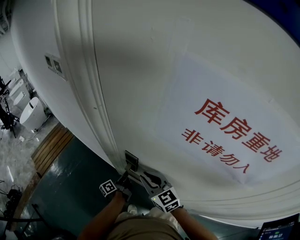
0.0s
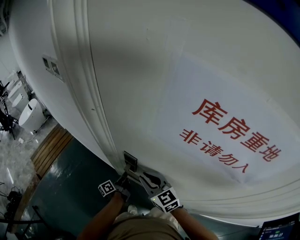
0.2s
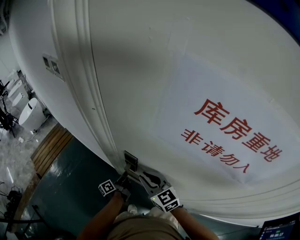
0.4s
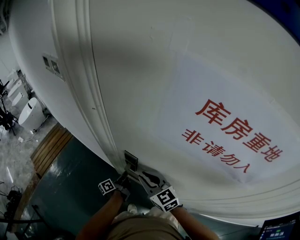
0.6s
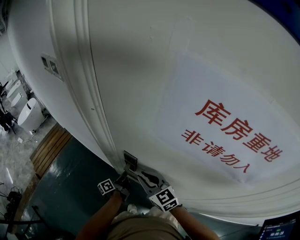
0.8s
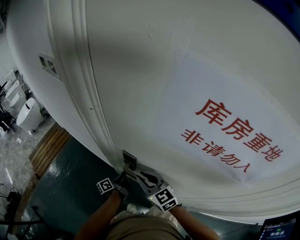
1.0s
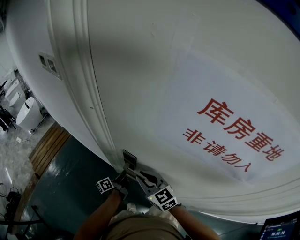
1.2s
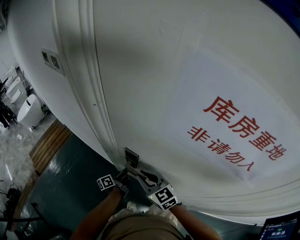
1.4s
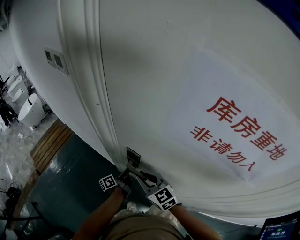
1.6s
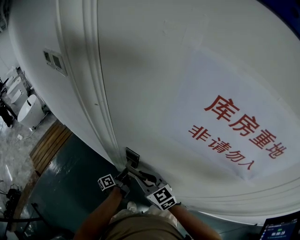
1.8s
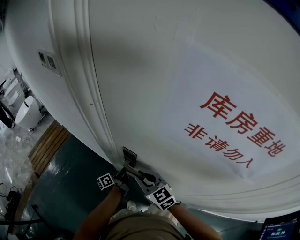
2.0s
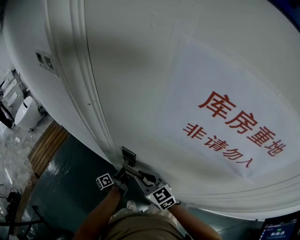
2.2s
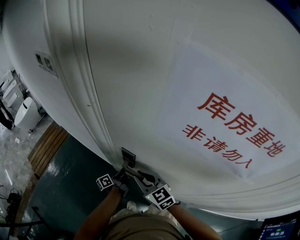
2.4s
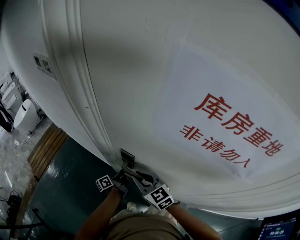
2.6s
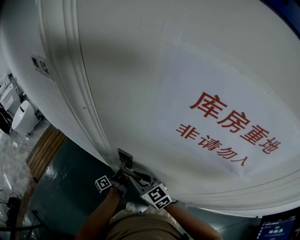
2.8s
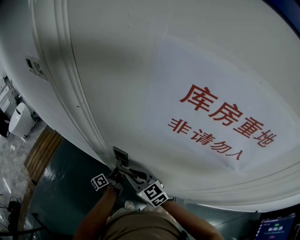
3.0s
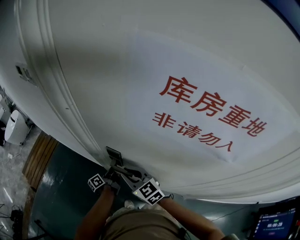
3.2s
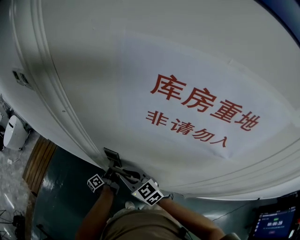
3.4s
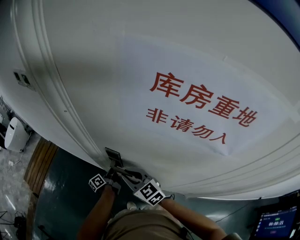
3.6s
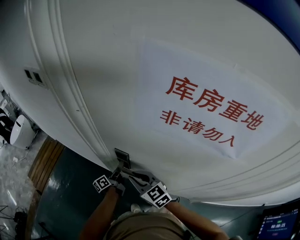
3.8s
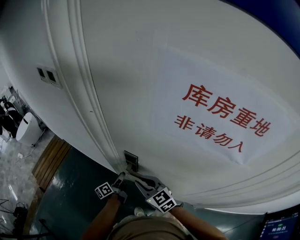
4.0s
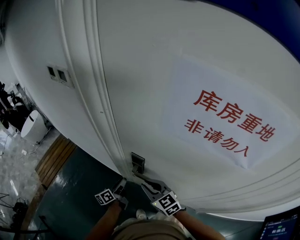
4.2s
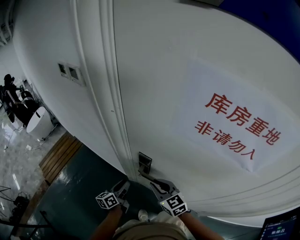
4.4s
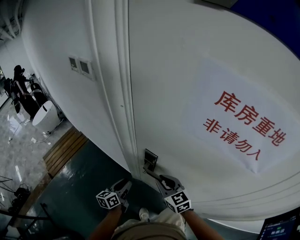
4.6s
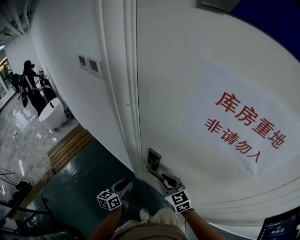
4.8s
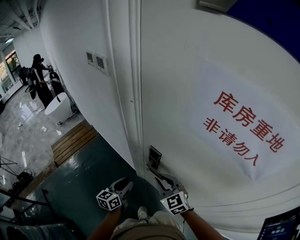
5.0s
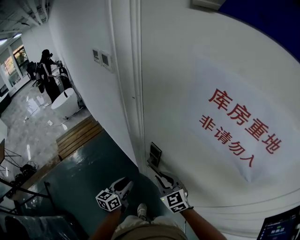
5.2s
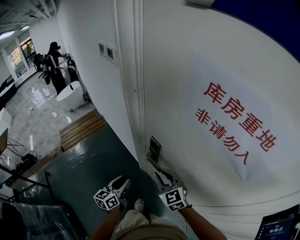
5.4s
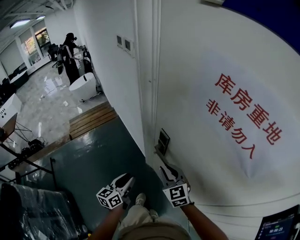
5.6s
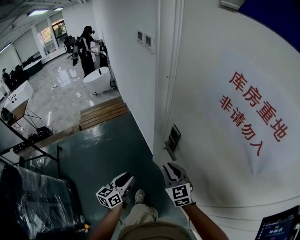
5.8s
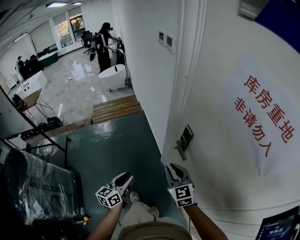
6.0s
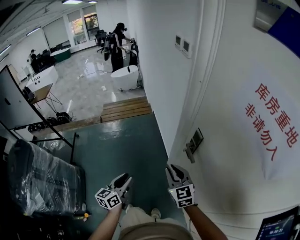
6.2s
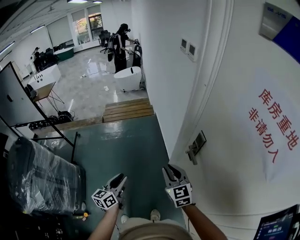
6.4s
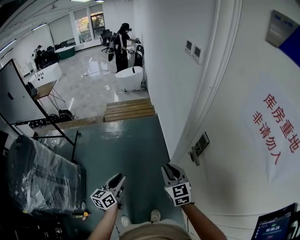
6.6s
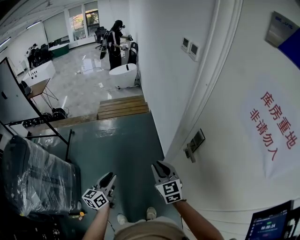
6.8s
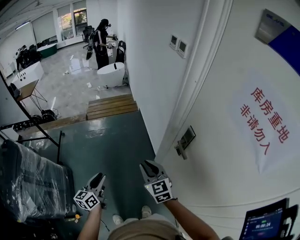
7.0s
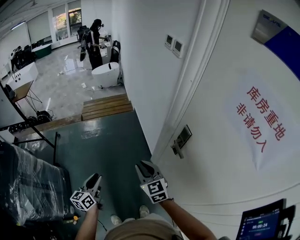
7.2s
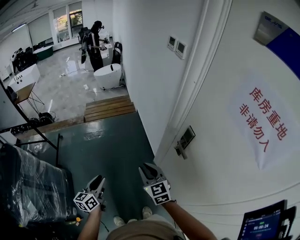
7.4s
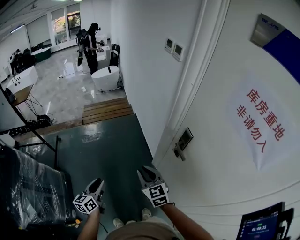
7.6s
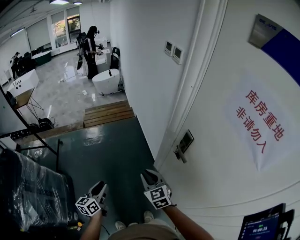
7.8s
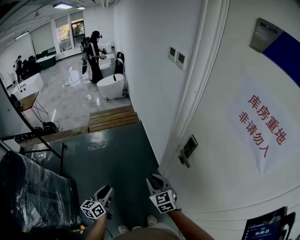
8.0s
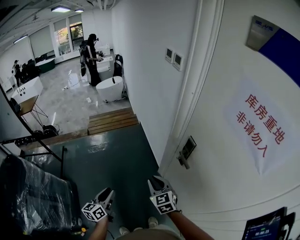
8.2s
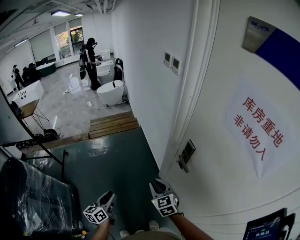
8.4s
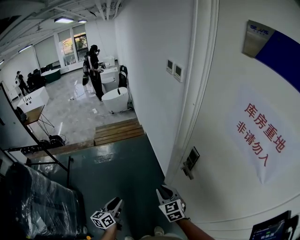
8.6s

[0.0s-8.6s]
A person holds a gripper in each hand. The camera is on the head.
0.0s to 2.8s: The grippers move only a little.
2.8s to 4.4s: The left gripper is displaced to the left, backward and upward by roughly 10 cm, swivels some 40 degrees, and opens up.
4.4s to 5.8s: The right gripper moves backward, approximately 5 cm, and swivels roughly 20 degrees, while the left gripper moves backward and upward, approximately 25 cm, and swivels about 30 degrees.
5.8s to 7.2s: The grippers both shift to the left by roughly 20 cm. The left gripper swivels approximately 20 degrees.
7.2s to 8.6s: The grippers both shift to the right by approximately 5 cm.

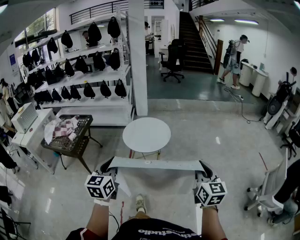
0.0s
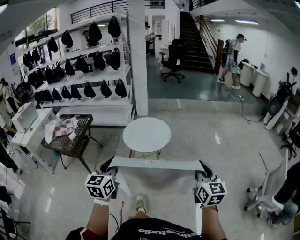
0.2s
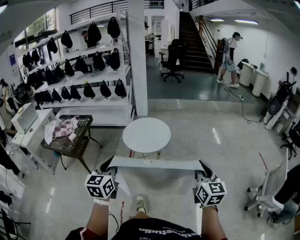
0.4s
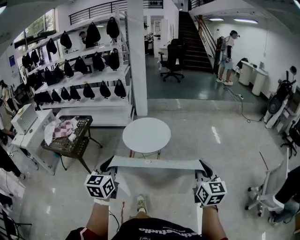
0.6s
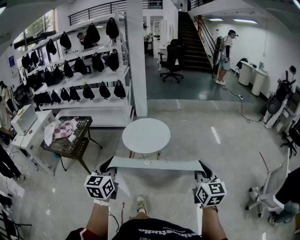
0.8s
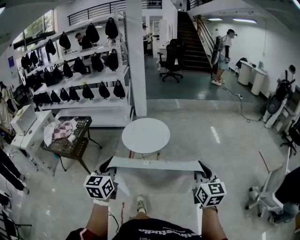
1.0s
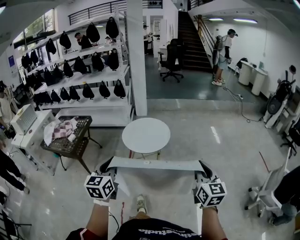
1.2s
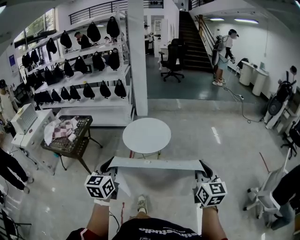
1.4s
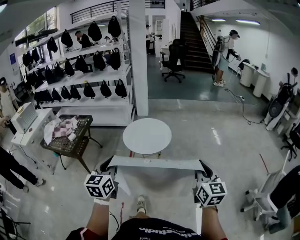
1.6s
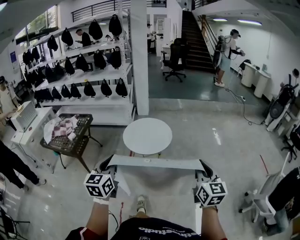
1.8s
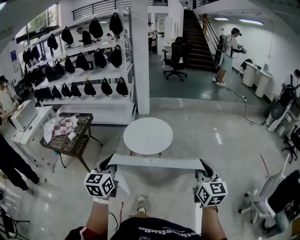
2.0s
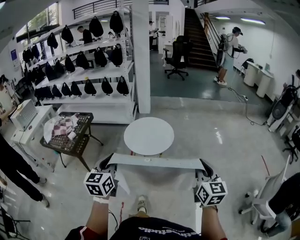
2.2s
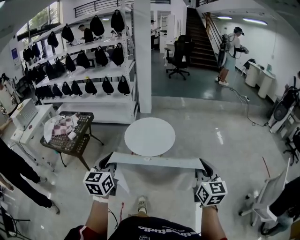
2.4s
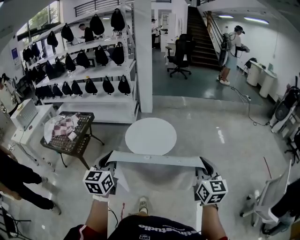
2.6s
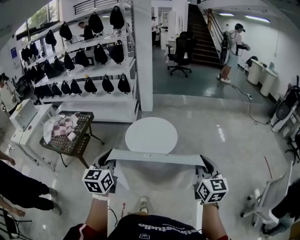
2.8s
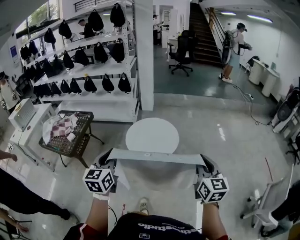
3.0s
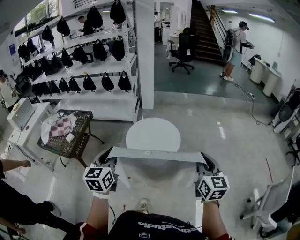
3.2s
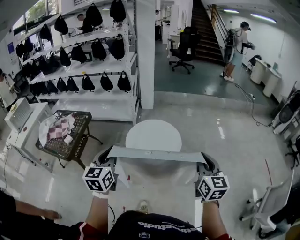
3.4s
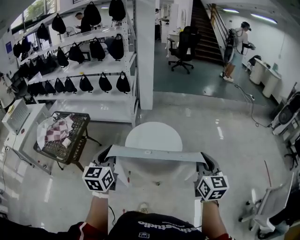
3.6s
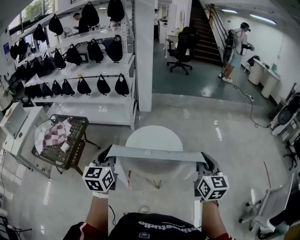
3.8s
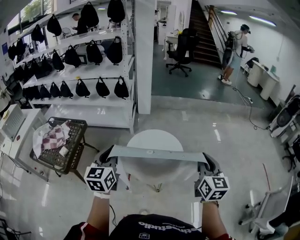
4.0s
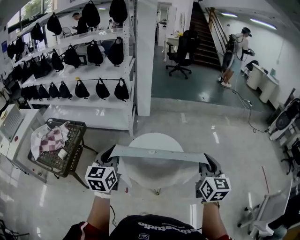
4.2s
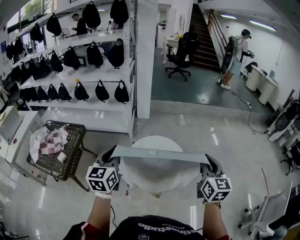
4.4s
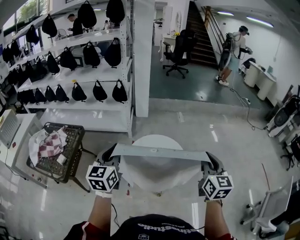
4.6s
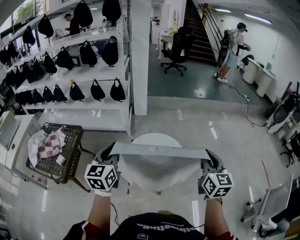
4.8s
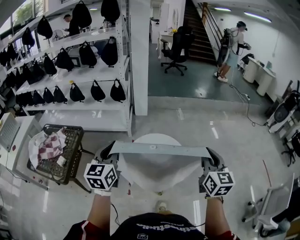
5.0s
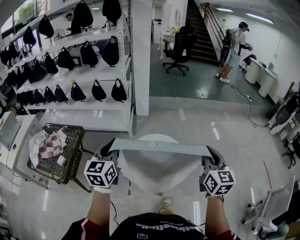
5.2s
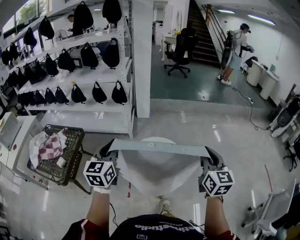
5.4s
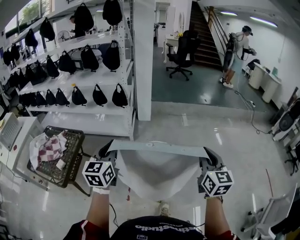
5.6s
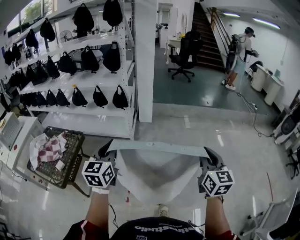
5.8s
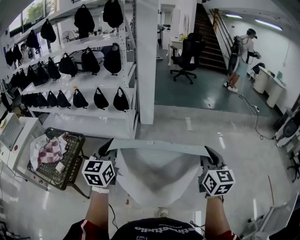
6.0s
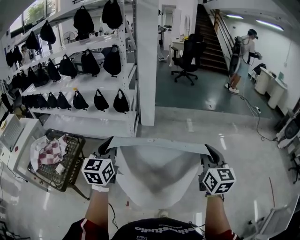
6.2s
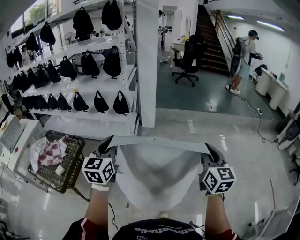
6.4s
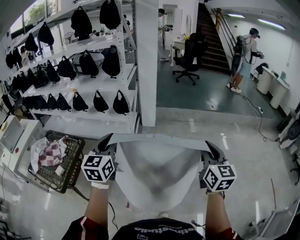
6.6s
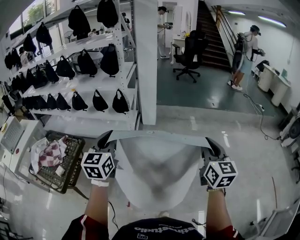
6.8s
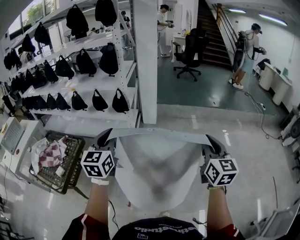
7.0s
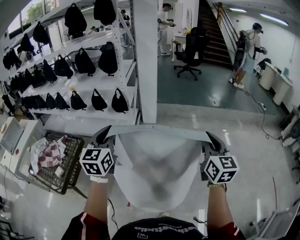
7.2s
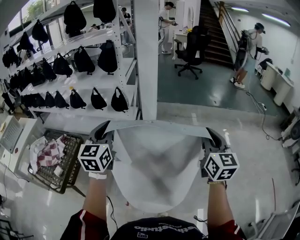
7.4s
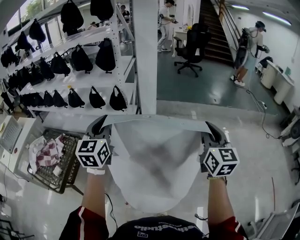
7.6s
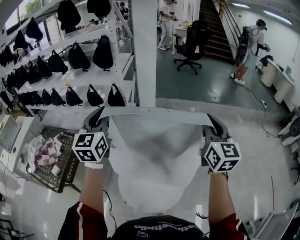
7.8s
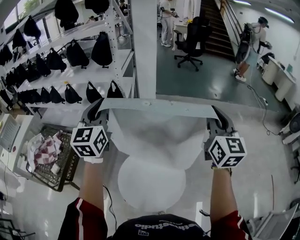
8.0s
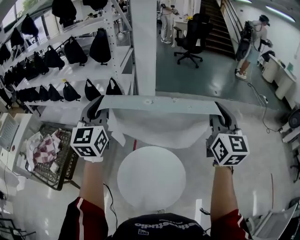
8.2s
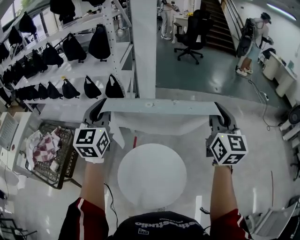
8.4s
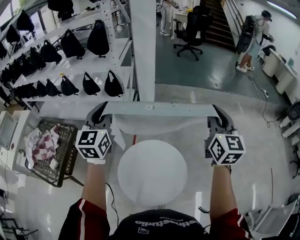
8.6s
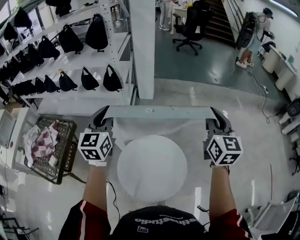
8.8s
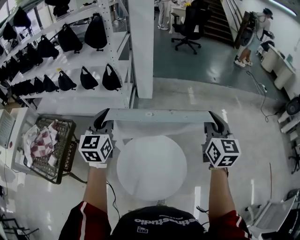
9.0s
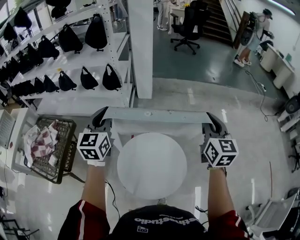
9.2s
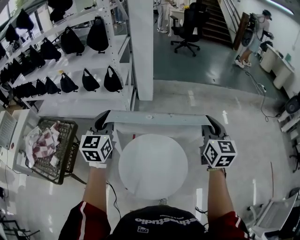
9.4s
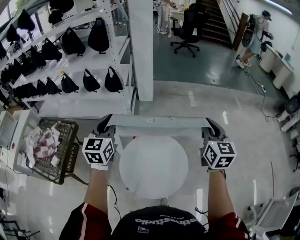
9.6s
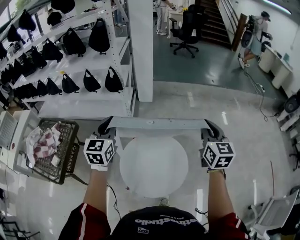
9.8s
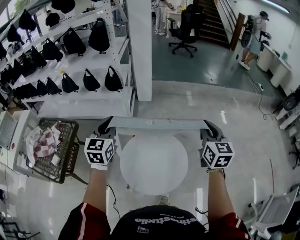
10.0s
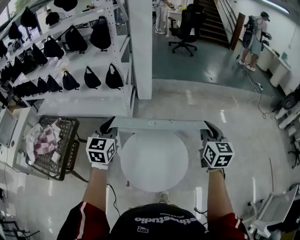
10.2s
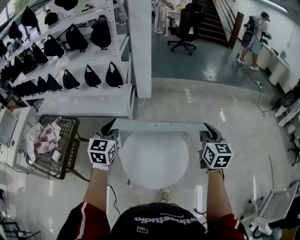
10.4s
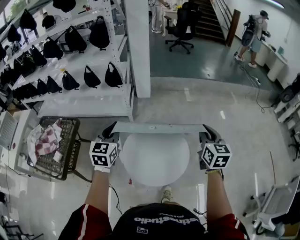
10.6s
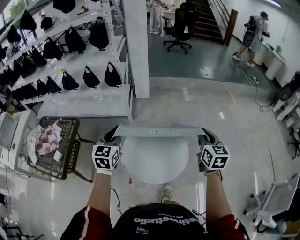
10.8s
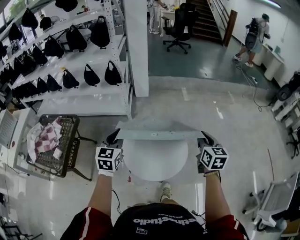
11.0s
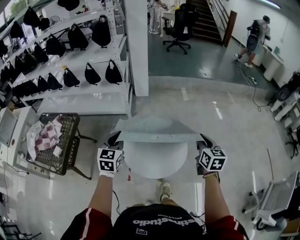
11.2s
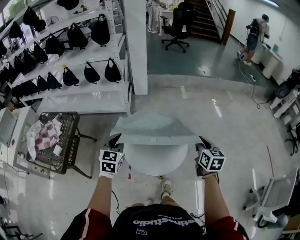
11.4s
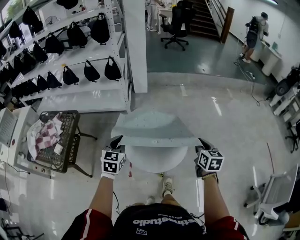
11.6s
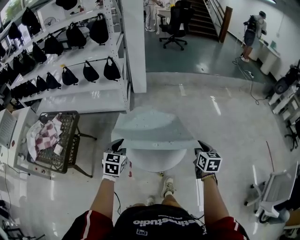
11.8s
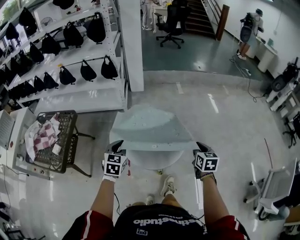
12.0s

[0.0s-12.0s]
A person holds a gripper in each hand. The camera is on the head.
0.0s to 1.6s: The grippers stay close to where they were, moving slightly.
1.6s to 3.0s: Both grippers travel together forward, some 15 cm.
3.0s to 4.4s: Both grippers travel together forward, roughly 25 cm.
4.4s to 6.0s: Both grippers travel together forward, roughly 15 cm.
6.0s to 7.6s: Both grippers travel together forward, approximately 15 cm.
7.6s to 9.0s: The grippers both shift downward by roughly 10 cm.
9.0s to 10.4s: Both grippers travel together backward and downward, about 15 cm.
10.4s to 12.0s: The two grippers go approximately 25 cm backward and downward. The right gripper swivels about 20 degrees.

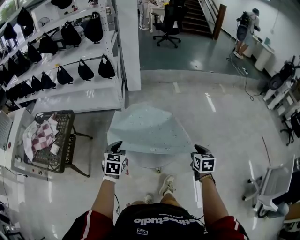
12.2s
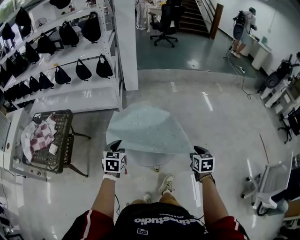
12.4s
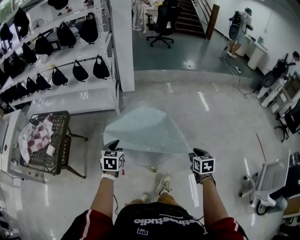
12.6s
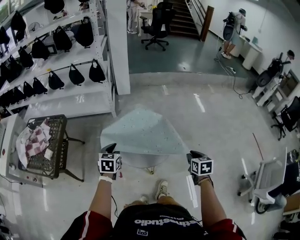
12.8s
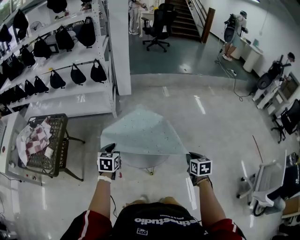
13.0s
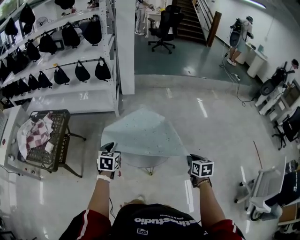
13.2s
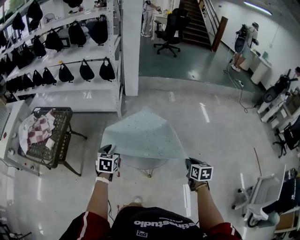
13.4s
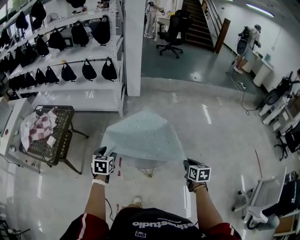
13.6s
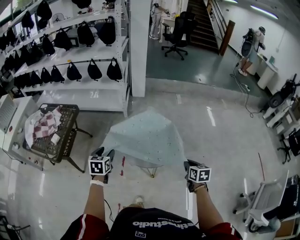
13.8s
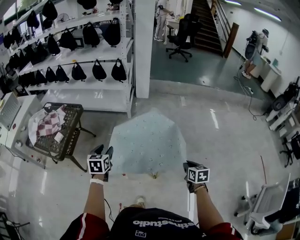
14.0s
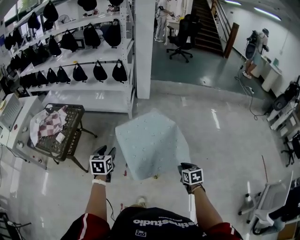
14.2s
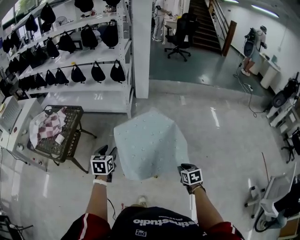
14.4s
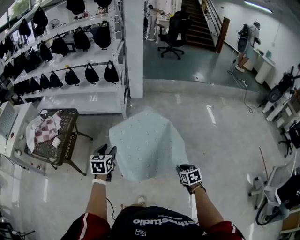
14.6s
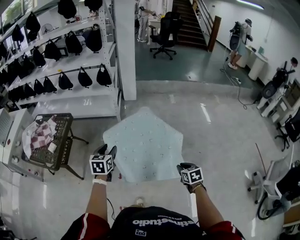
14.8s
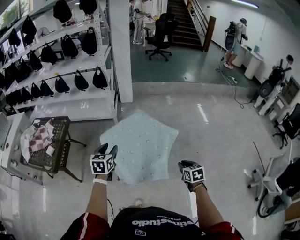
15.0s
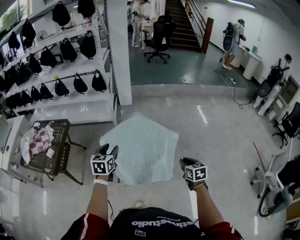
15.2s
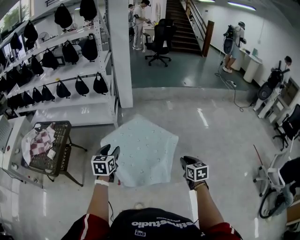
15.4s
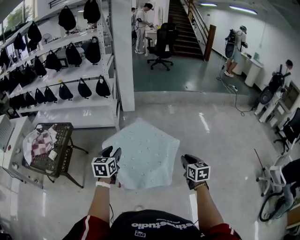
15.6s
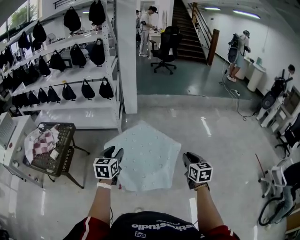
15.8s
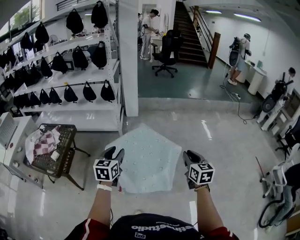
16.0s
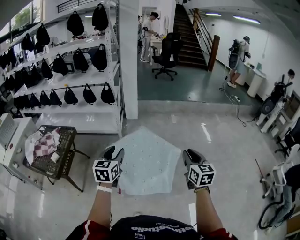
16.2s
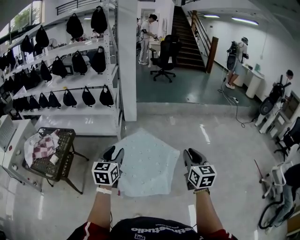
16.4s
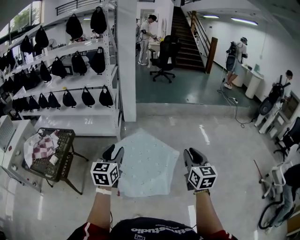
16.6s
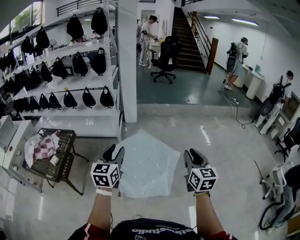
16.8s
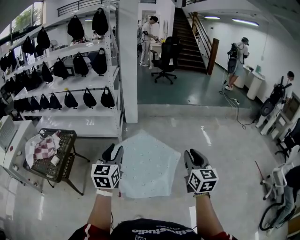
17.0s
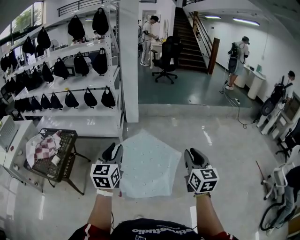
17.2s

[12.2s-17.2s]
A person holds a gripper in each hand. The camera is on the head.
12.2s to 13.8s: The left gripper moves backward and to the left, about 10 cm, and opens up; the right gripper goes roughly 5 cm backward.
13.8s to 15.6s: The right gripper travels upward by some 10 cm. The left gripper is displaced to the right and upward by roughly 15 cm.
15.6s to 17.2s: Both grippers move upward, approximately 15 cm. The right gripper swivels about 20 degrees; the left gripper swivels approximately 20 degrees.
